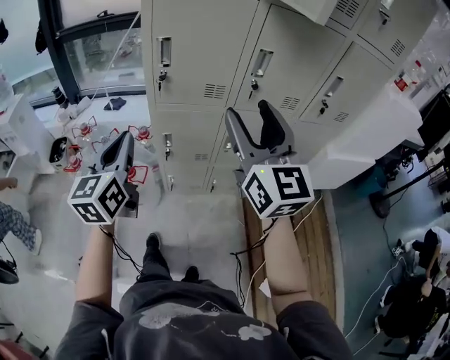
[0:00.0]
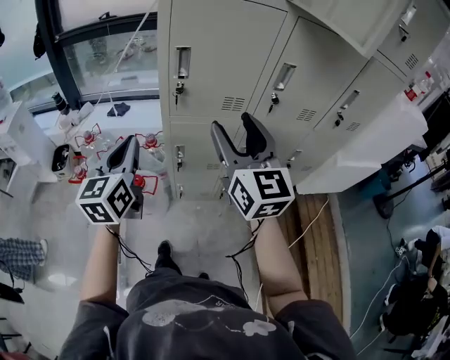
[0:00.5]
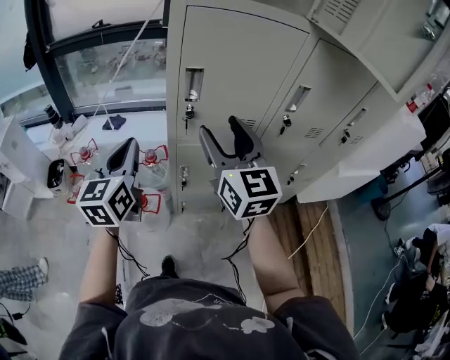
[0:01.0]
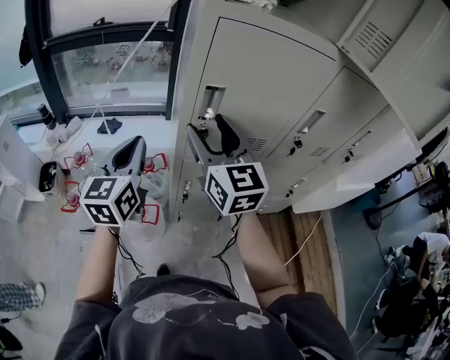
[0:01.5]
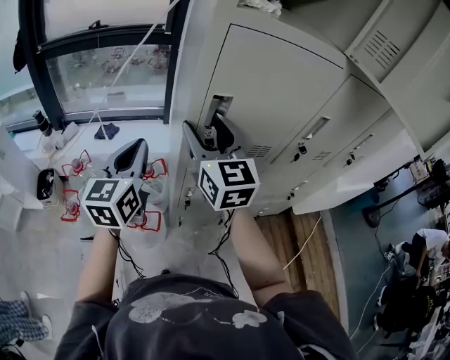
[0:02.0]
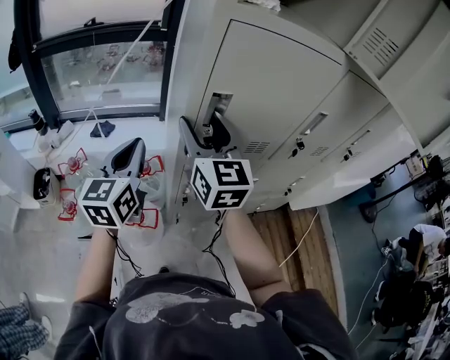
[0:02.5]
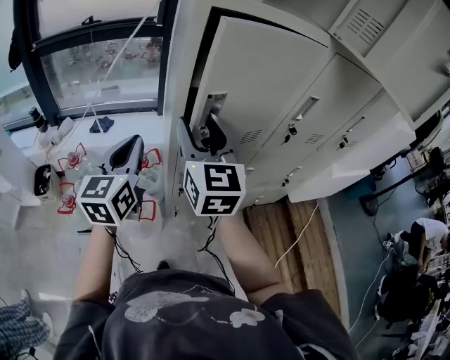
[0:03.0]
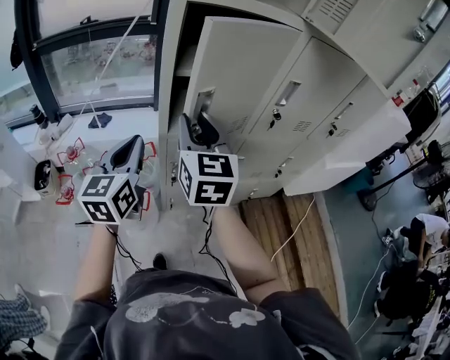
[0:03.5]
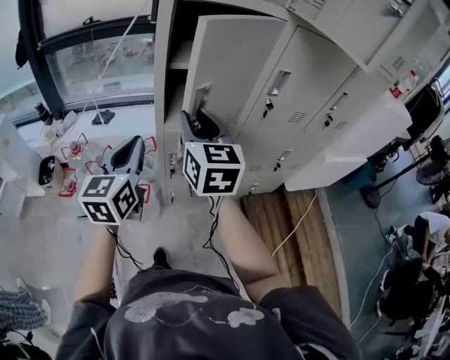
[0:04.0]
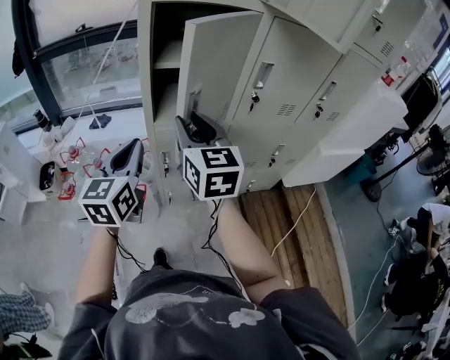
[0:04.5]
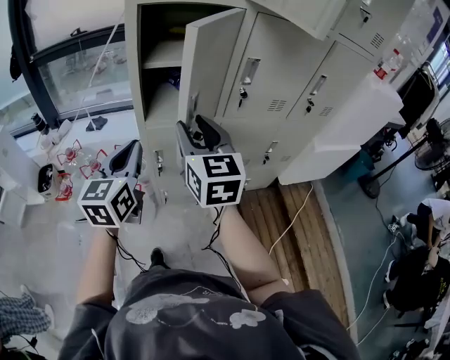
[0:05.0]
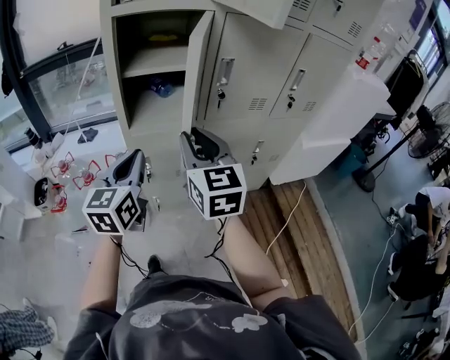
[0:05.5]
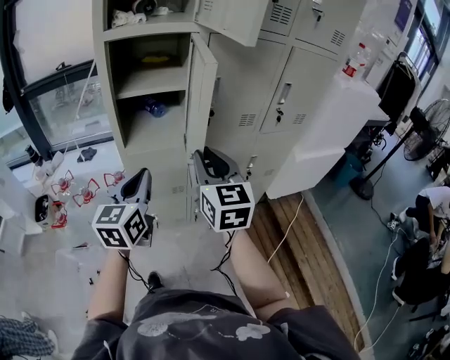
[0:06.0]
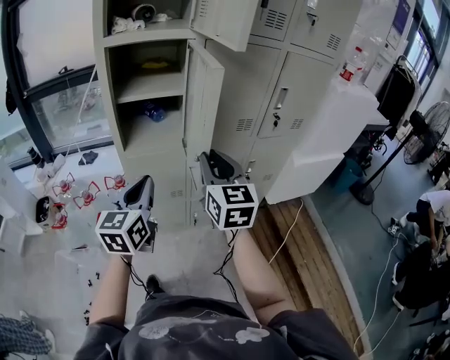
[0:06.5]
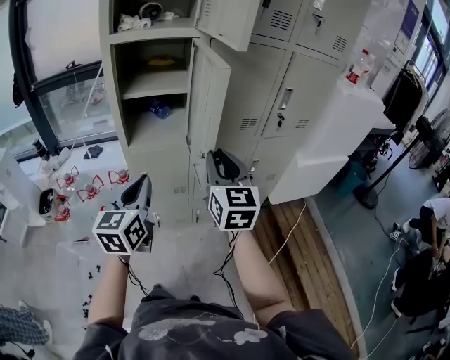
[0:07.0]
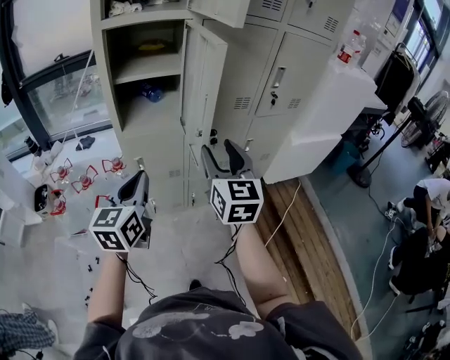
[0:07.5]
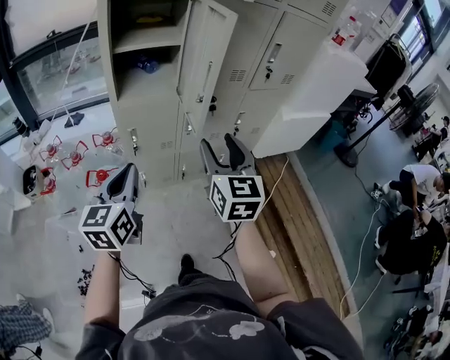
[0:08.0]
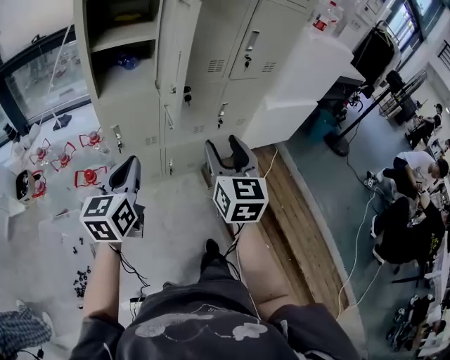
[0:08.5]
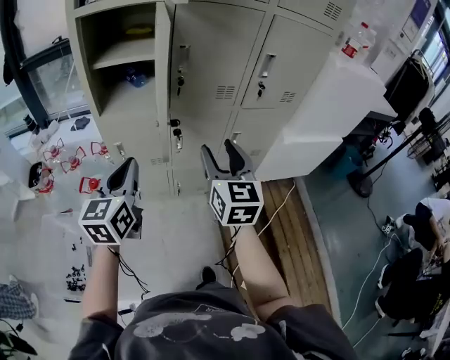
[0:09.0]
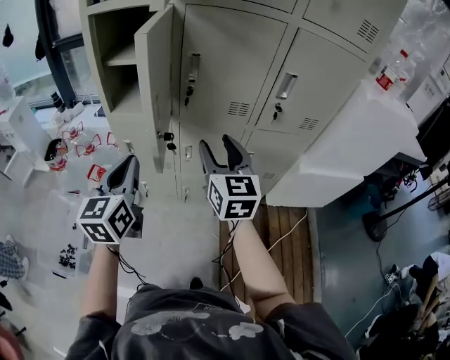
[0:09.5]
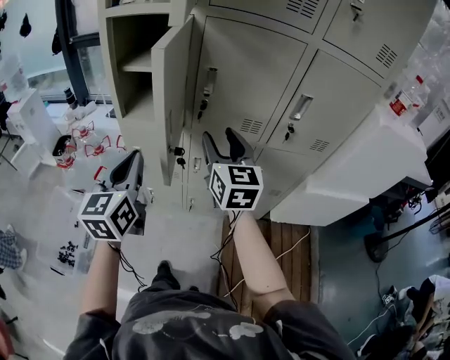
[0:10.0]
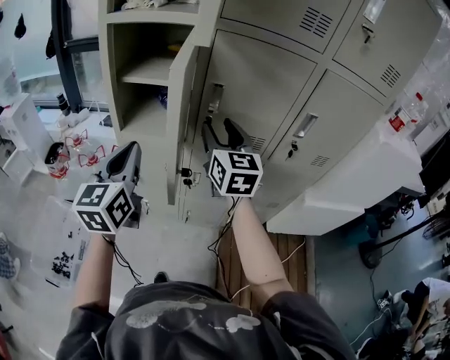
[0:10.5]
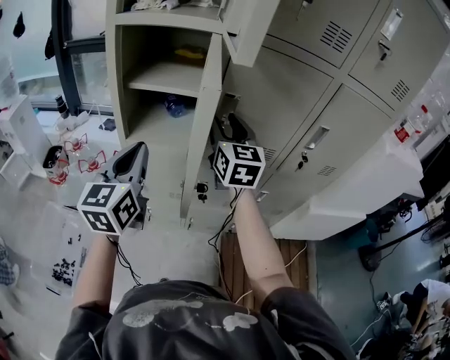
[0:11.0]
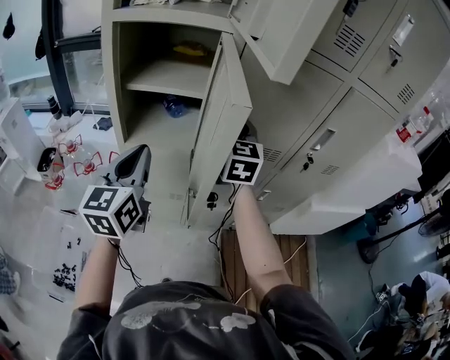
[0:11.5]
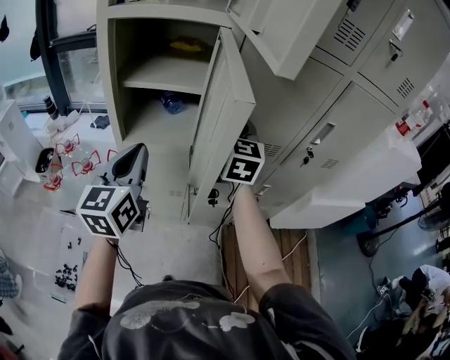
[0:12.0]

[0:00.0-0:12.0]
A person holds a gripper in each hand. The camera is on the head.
0:00.0 to 0:02.0: Both grippers move forward and to the left, about 30 cm.
0:02.0 to 0:04.0: The grippers both shift backward and to the right by roughly 15 cm. The right gripper closes its fingers.
0:04.0 to 0:06.0: Both grippers travel together to the right and backward, about 20 cm.
0:06.0 to 0:08.0: The grippers both shift backward by about 10 cm. The right gripper opens its fingers.
0:08.0 to 0:10.0: The left gripper ends up roughly 20 cm from where it was, and turns by approximately 20 degrees, while the right gripper changes place by approximately 25 cm, and turns by about 30 degrees.
0:10.0 to 0:12.0: The left gripper shifts about 15 cm forward and to the left. Meanwhile the right gripper is displaced forward by roughly 15 cm, and closes up.

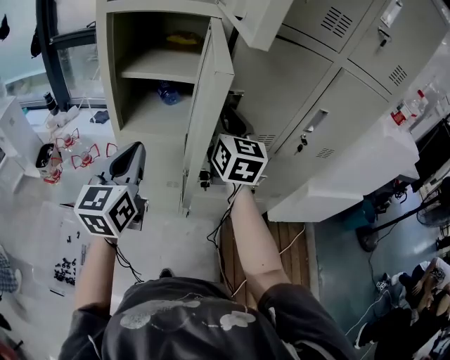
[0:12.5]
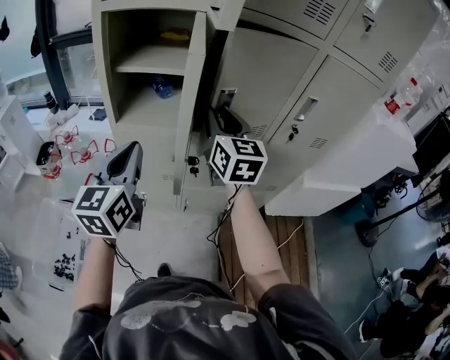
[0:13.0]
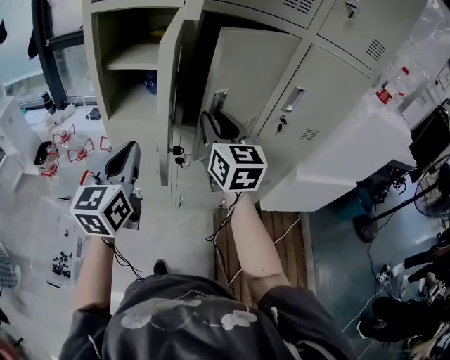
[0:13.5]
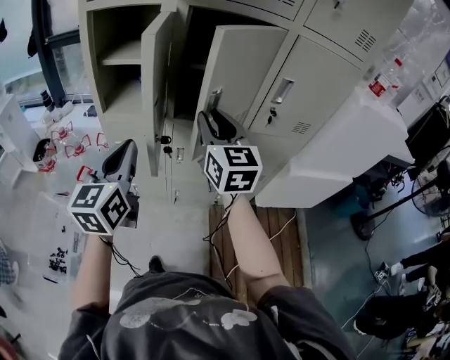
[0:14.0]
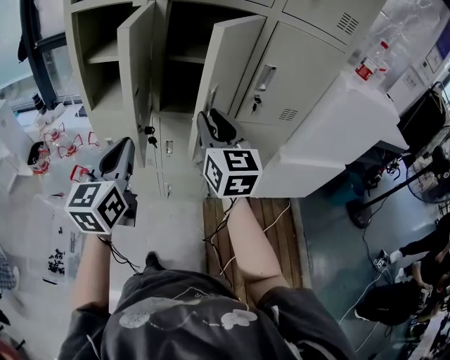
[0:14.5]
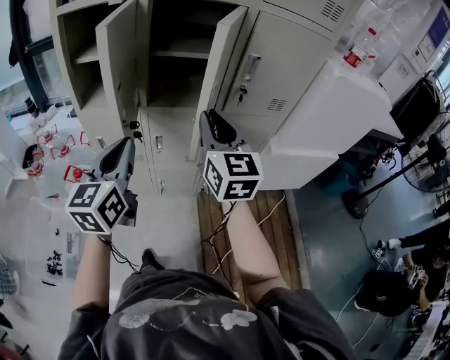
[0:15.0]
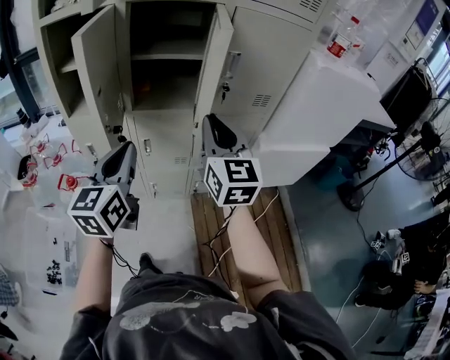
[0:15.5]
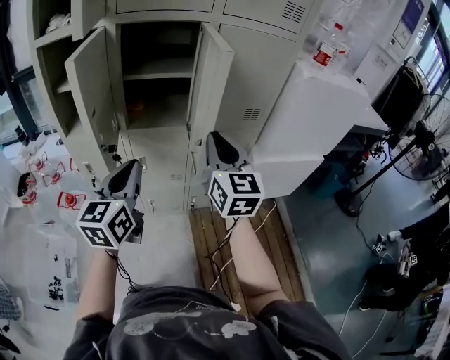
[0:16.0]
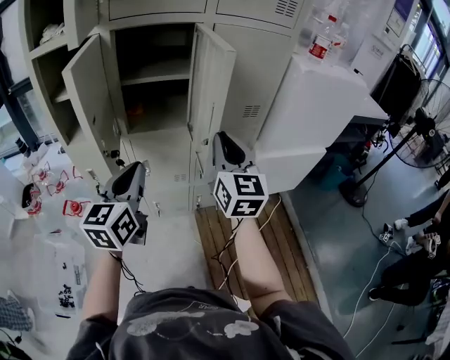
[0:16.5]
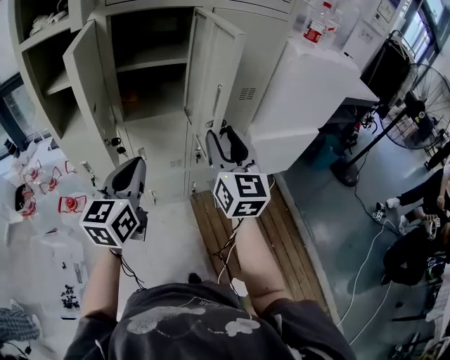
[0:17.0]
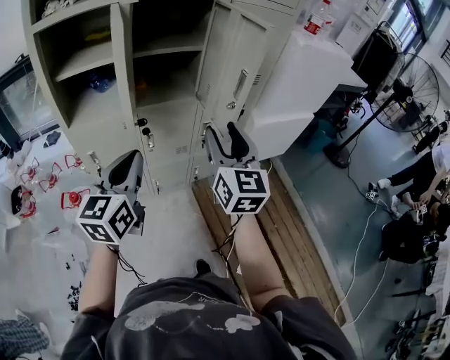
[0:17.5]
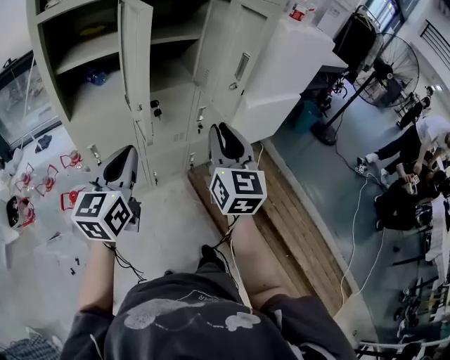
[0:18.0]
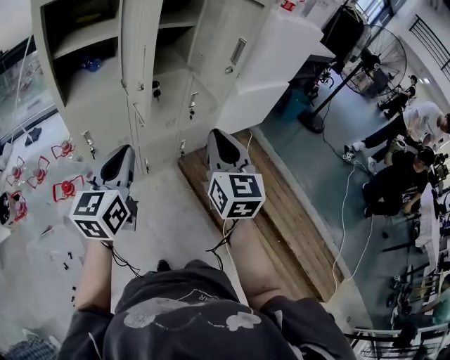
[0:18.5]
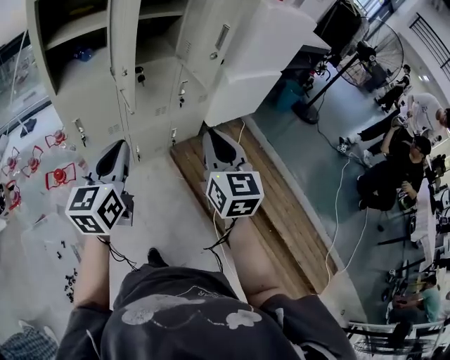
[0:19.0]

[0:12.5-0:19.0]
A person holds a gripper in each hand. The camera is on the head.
0:12.5 to 0:14.5: The left gripper shifts about 15 cm to the right and backward; the right gripper is displaced backward and to the right by about 20 cm.
0:14.5 to 0:17.0: The right gripper travels to the right and backward by about 15 cm; the left gripper shifts approximately 10 cm to the right.
0:17.0 to 0:19.0: The right gripper moves backward, approximately 25 cm, and closes its fingers; the left gripper shifts some 20 cm backward and to the left.

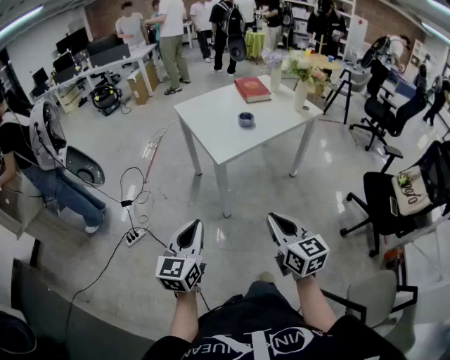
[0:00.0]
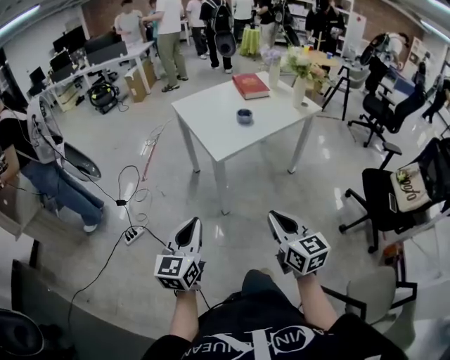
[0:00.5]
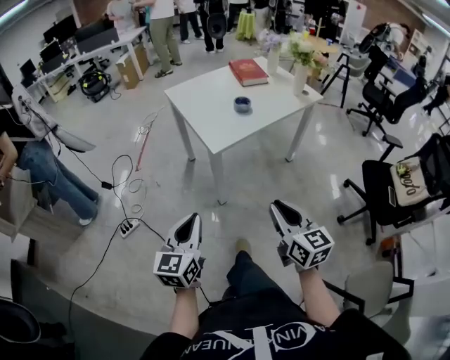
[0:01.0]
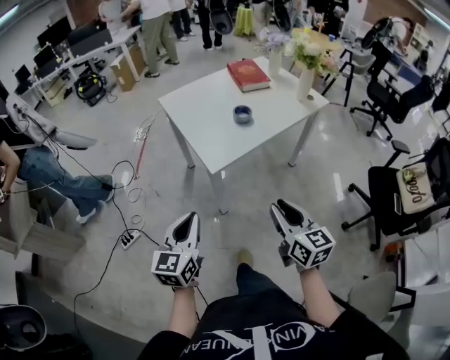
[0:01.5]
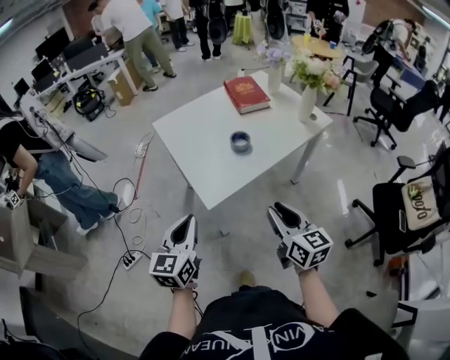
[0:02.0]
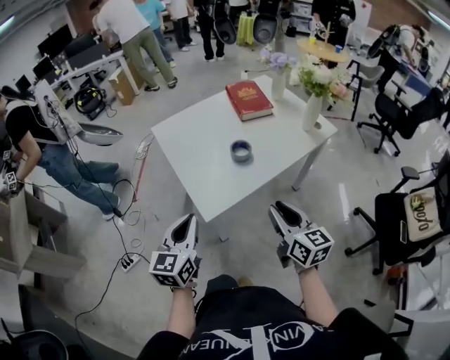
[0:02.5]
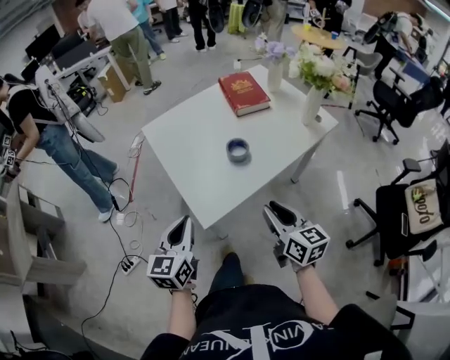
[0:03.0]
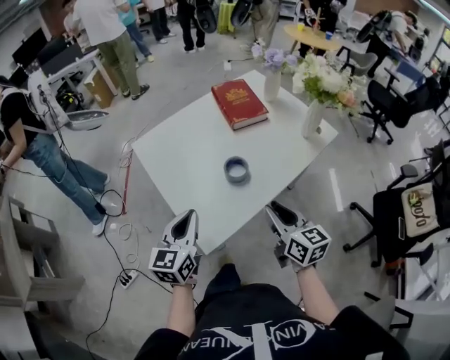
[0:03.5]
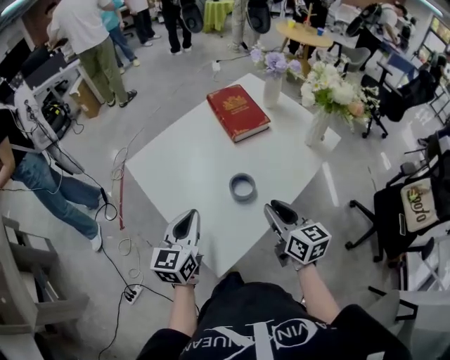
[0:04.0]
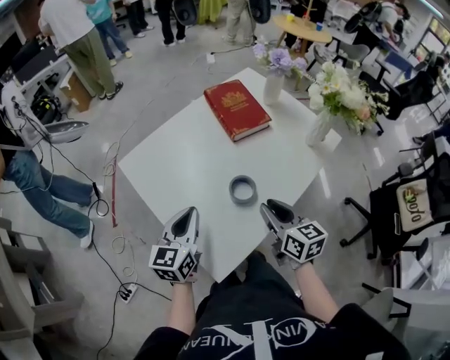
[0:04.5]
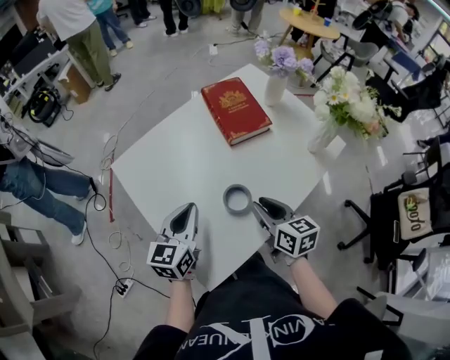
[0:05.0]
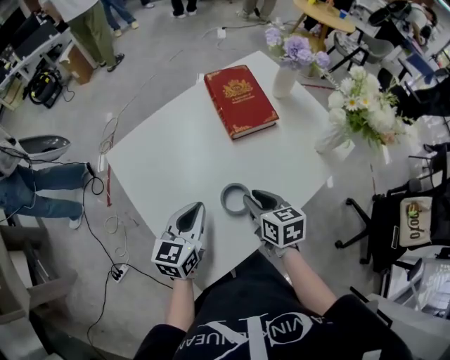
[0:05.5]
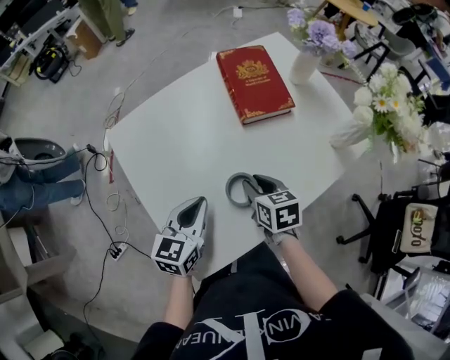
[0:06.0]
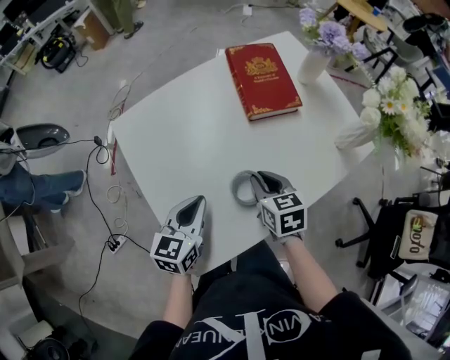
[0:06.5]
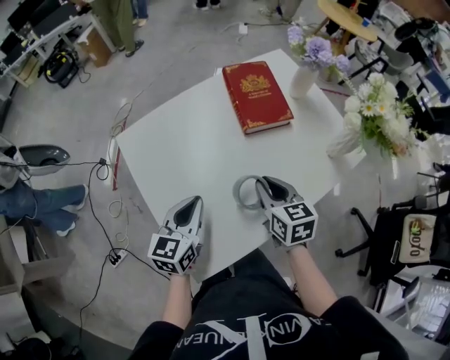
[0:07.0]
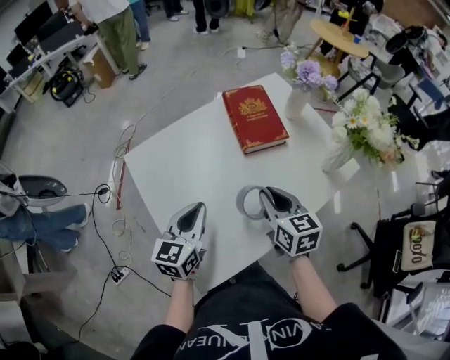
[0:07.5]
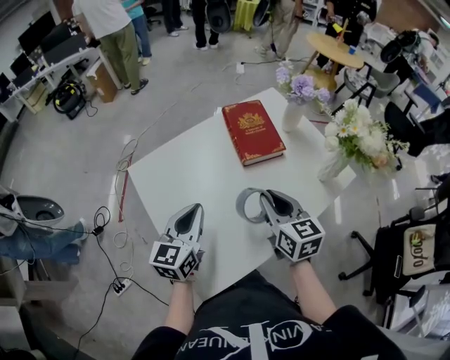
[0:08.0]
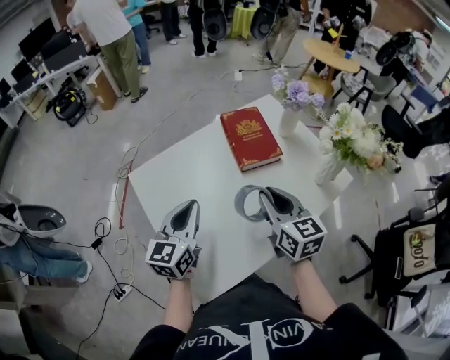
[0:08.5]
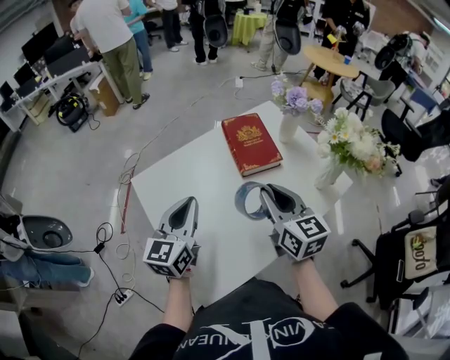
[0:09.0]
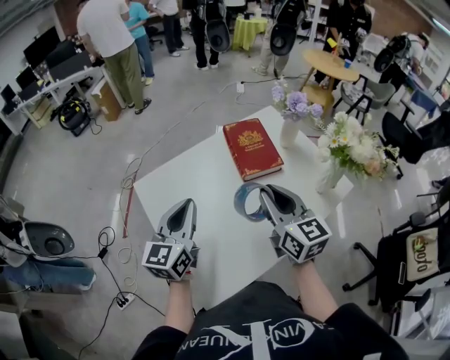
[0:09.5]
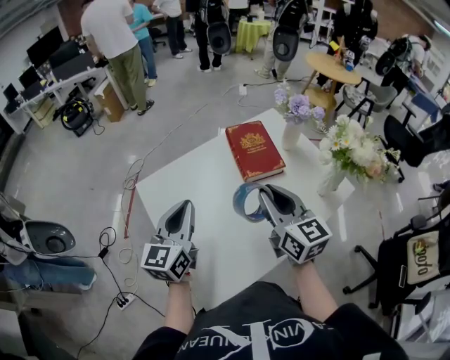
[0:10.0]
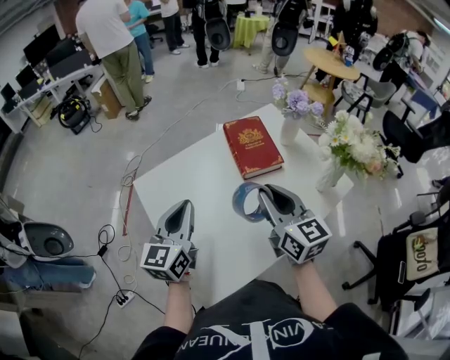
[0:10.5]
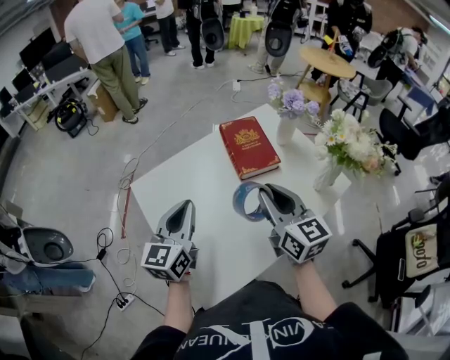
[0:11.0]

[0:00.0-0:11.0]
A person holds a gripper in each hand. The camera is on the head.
0:00.0 to 0:02.0: The grippers both shift forward by some 25 cm.
0:02.0 to 0:03.5: The two grippers go roughly 20 cm forward.
0:03.5 to 0:05.5: The two grippers go roughly 20 cm forward and downward. The right gripper swivels approximately 20 degrees.
0:05.5 to 0:07.5: The right gripper heads upward, covering approximately 10 cm.
0:07.5 to 0:09.0: The grippers both shift upward by roughly 10 cm.
0:09.0 to 0:11.0: The grippers stay close to where they were, moving slightly.
